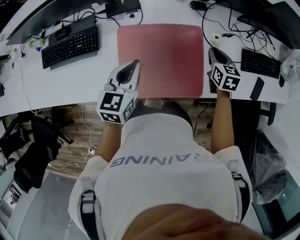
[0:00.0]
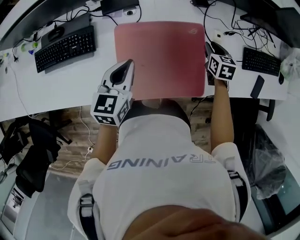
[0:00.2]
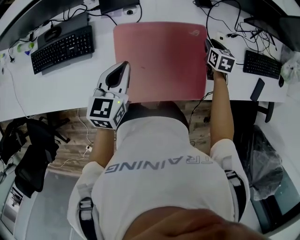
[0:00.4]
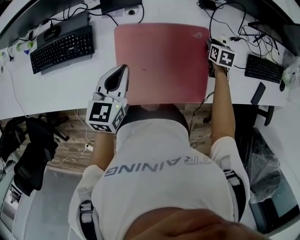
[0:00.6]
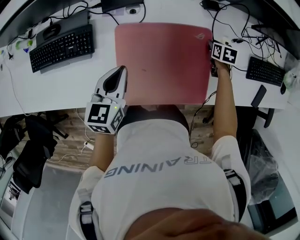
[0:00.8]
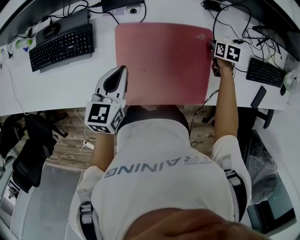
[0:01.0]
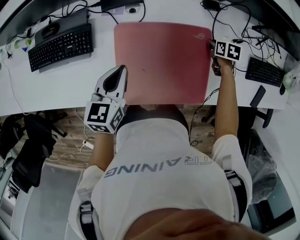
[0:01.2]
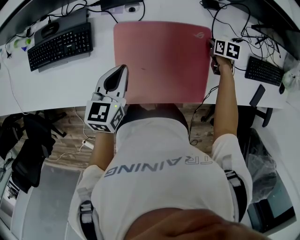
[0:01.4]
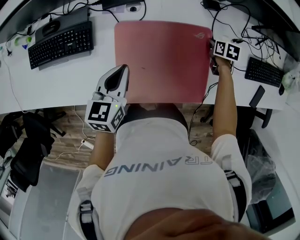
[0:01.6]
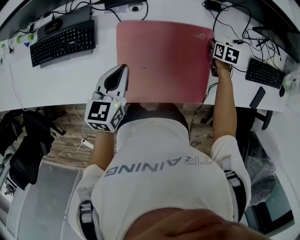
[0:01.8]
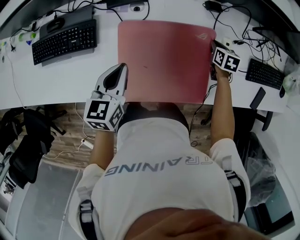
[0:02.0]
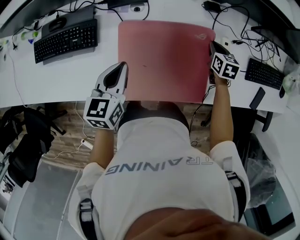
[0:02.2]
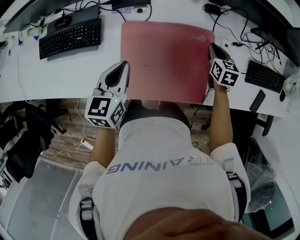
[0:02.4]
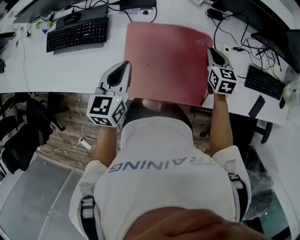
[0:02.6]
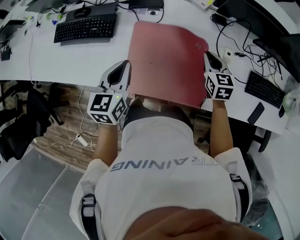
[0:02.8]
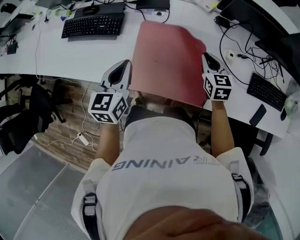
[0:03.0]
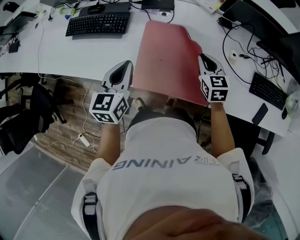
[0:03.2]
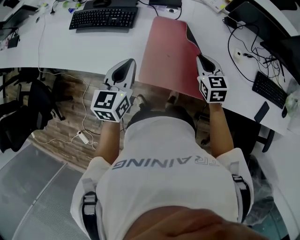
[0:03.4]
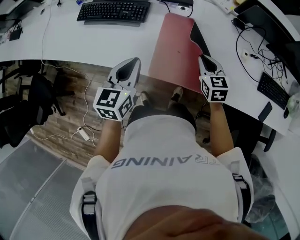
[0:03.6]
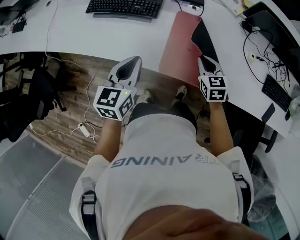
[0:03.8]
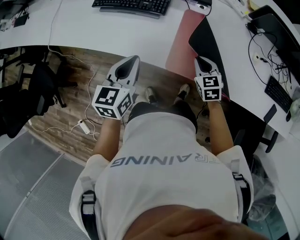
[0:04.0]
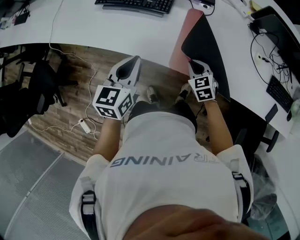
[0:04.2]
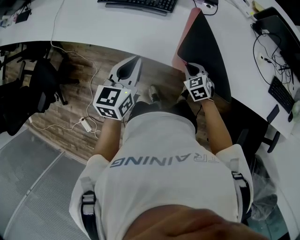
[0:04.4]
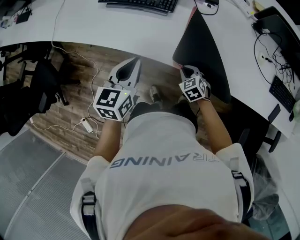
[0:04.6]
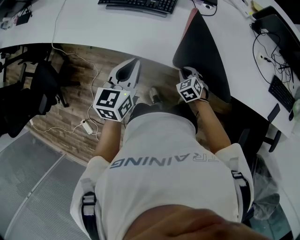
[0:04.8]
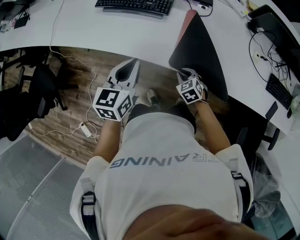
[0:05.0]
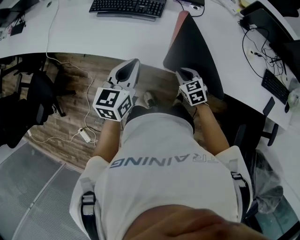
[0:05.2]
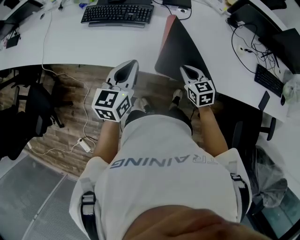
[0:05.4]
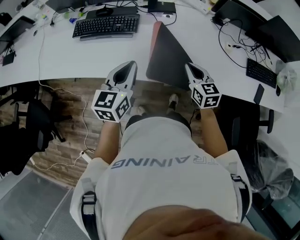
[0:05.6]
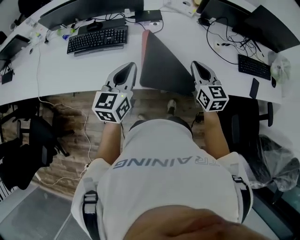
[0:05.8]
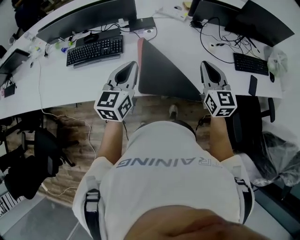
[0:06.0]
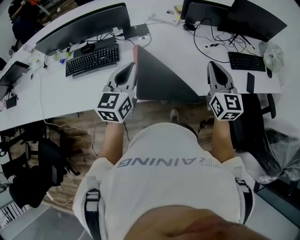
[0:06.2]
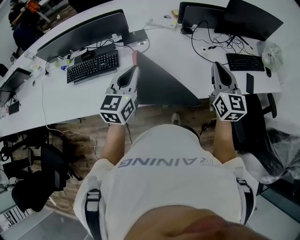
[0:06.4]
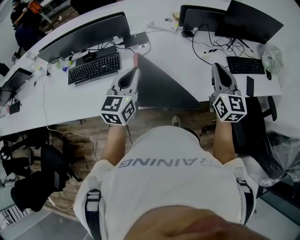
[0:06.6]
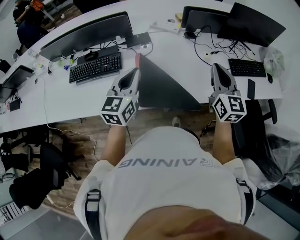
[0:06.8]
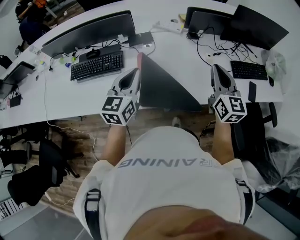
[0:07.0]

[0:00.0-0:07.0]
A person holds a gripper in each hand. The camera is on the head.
0:00.0 to 0:01.4: The right gripper goes about 20 cm downward and forward, and rotates about 30 degrees. Meanwhile the left gripper heads downward and to the left, covering roughly 10 cm.
0:01.4 to 0:02.8: The right gripper travels upward, to the left and backward by approximately 20 cm, and points its fingers approximately 30 degrees further upward. The left gripper heads upward and backward, covering approximately 10 cm.
0:02.8 to 0:04.2: Both grippers move to the left and backward, some 30 cm. The right gripper turns by some 30 degrees.
0:04.2 to 0:05.6: The left gripper heads to the right, covering some 5 cm. The right gripper shifts some 15 cm upward and to the right, and swivels about 30 degrees.
0:05.6 to 0:07.0: The right gripper travels upward and to the right by approximately 25 cm, and swivels approximately 30 degrees. Meanwhile the left gripper heads to the right, forward and upward, covering some 15 cm.

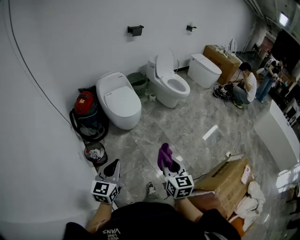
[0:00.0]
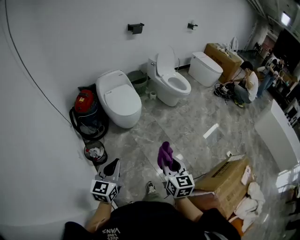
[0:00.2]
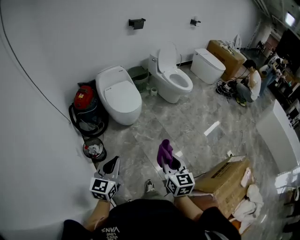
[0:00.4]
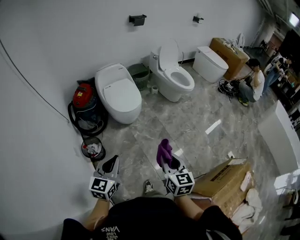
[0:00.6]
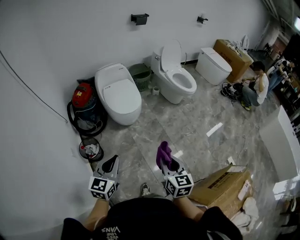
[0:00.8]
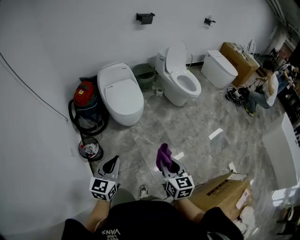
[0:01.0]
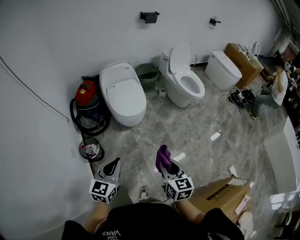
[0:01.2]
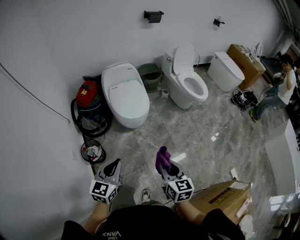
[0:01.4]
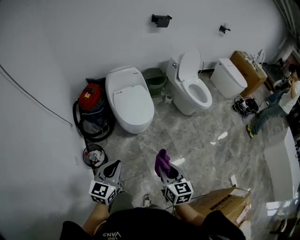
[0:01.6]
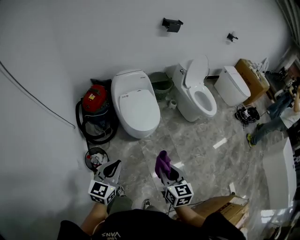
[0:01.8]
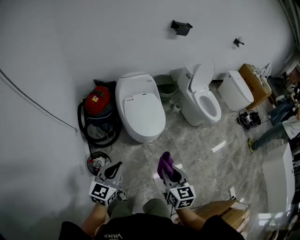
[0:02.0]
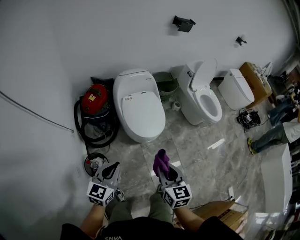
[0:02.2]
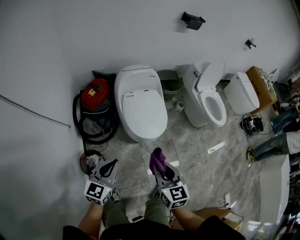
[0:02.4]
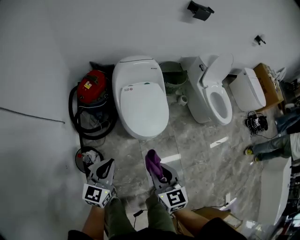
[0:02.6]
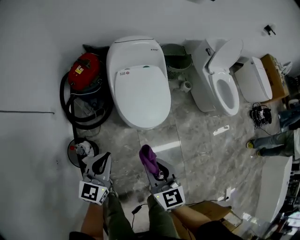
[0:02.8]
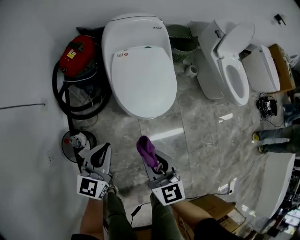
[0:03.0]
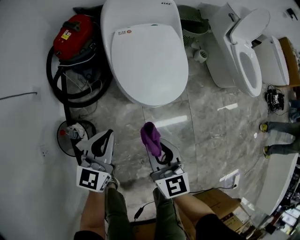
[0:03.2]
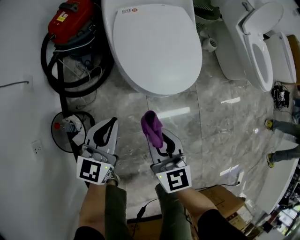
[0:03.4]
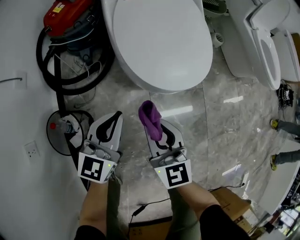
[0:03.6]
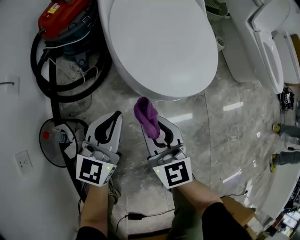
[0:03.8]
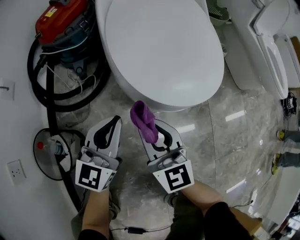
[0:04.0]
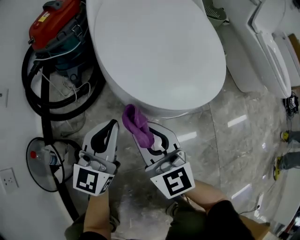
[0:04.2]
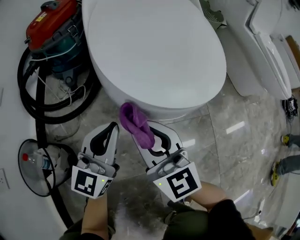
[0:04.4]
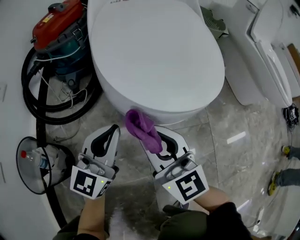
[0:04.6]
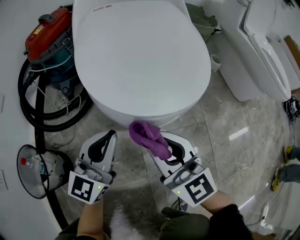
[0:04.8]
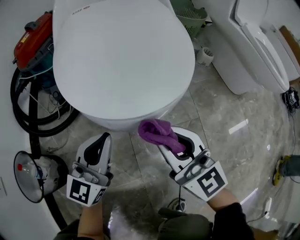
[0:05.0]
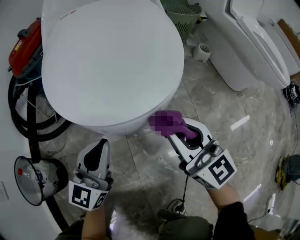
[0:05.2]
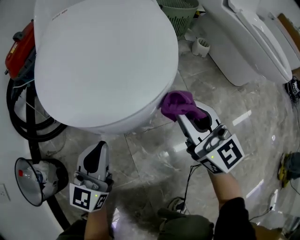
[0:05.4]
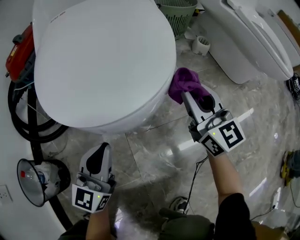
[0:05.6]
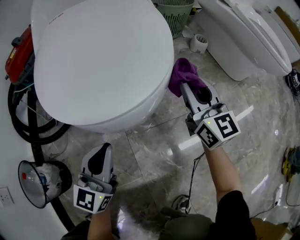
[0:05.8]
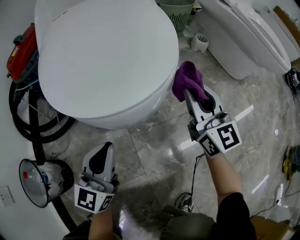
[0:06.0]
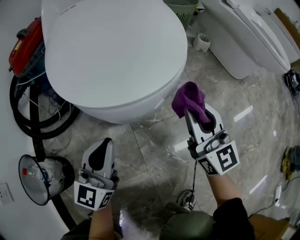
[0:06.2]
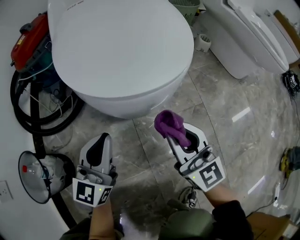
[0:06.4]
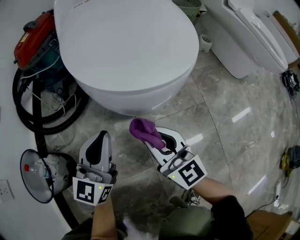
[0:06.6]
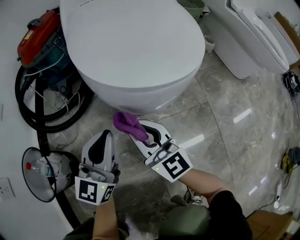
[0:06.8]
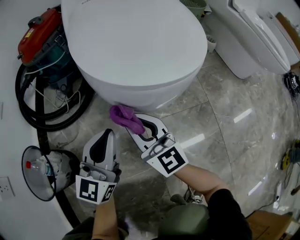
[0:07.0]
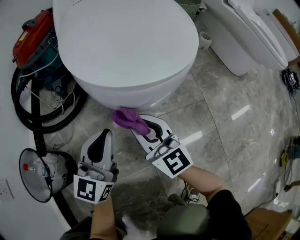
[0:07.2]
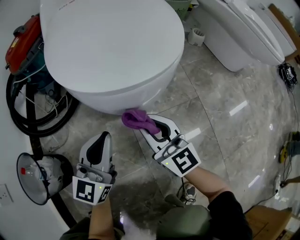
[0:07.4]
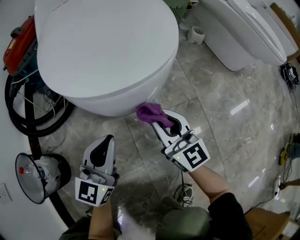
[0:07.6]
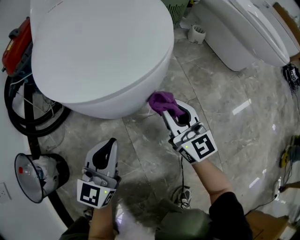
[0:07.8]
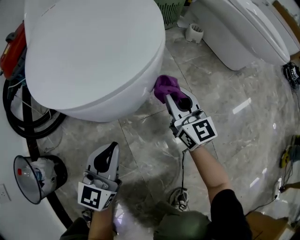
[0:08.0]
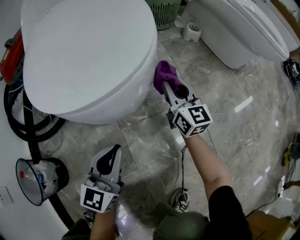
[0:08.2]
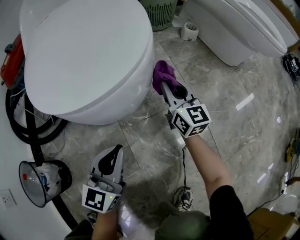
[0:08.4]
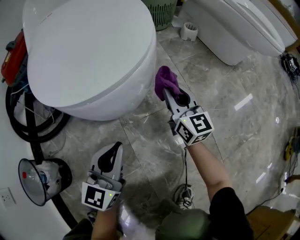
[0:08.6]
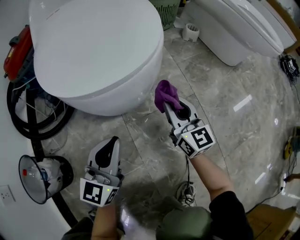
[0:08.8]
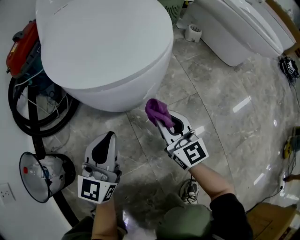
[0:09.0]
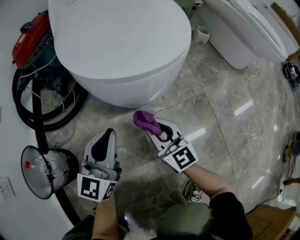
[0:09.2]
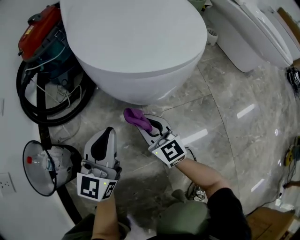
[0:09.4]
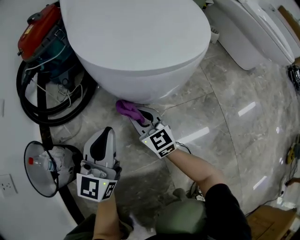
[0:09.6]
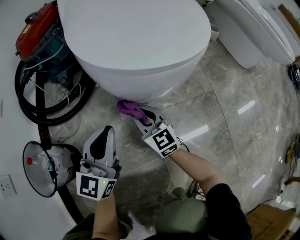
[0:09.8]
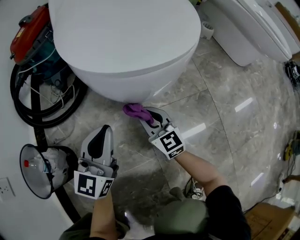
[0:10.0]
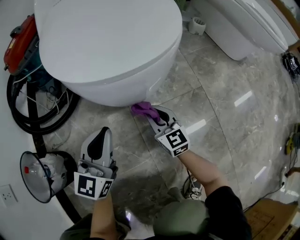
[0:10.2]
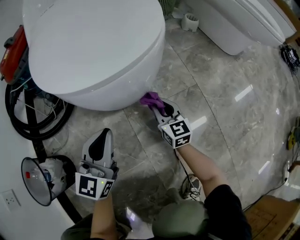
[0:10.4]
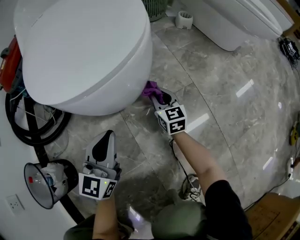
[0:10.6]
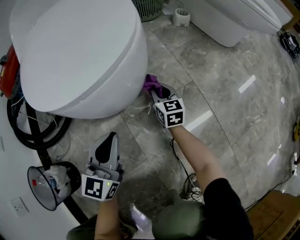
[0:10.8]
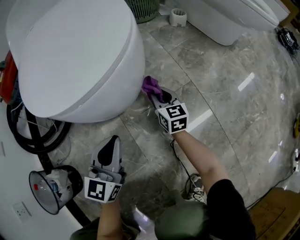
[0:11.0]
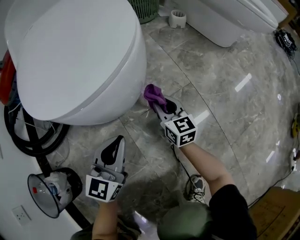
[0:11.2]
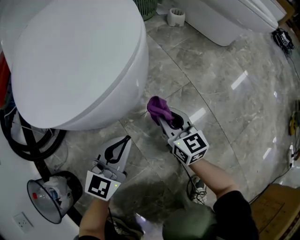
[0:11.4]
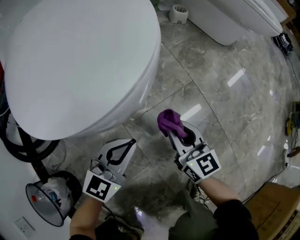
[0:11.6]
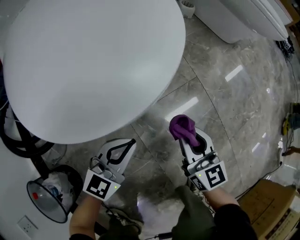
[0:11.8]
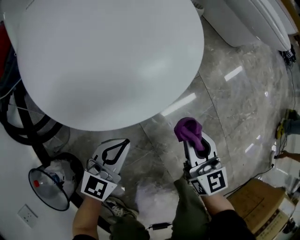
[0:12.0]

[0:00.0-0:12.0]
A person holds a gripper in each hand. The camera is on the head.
0:00.0 to 0:01.6: Both grippers move forward, approximately 25 cm.
0:01.6 to 0:03.0: Both grippers move forward and downward, approximately 35 cm. The right gripper rotates roughly 20 degrees.
0:03.0 to 0:04.4: The two grippers go approximately 35 cm downward. The right gripper rotates approximately 20 degrees.
0:04.4 to 0:06.0: The left gripper is displaced to the right by roughly 10 cm, while the right gripper is displaced to the right by roughly 25 cm, and rotates some 20 degrees.
0:06.0 to 0:07.6: The left gripper goes to the left and returns, about 10 cm each way; the right gripper travels to the left, backward and downward by some 15 cm.
0:07.6 to 0:09.0: The right gripper reaches about 15 cm forward, then returns.
0:09.0 to 0:10.4: The right gripper is displaced downward and forward by some 15 cm, and travels to the left and back again, about 20 cm each way, while the left gripper moves some 10 cm to the left and comes back.
0:10.4 to 0:12.0: The right gripper heads upward and backward, covering some 20 cm; the left gripper turns by some 30 degrees.

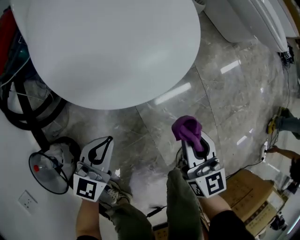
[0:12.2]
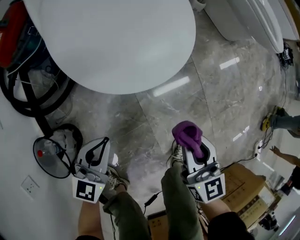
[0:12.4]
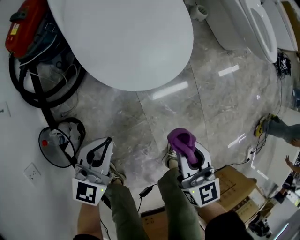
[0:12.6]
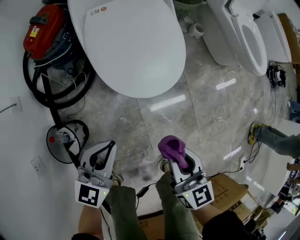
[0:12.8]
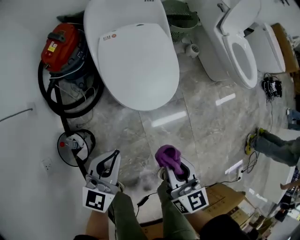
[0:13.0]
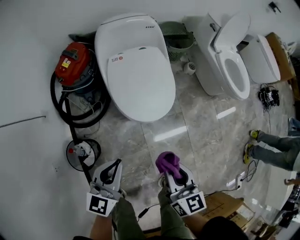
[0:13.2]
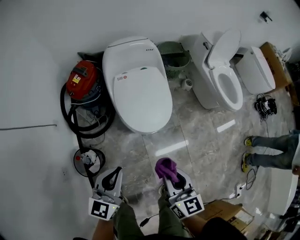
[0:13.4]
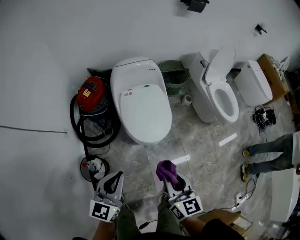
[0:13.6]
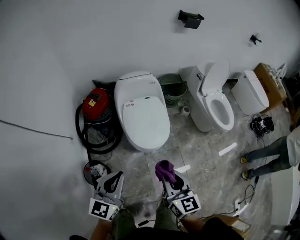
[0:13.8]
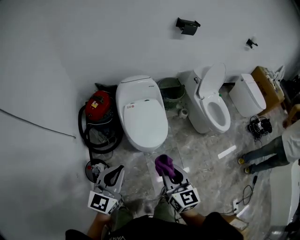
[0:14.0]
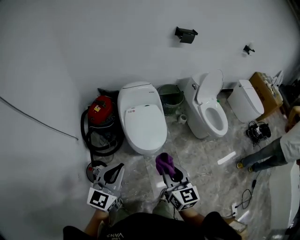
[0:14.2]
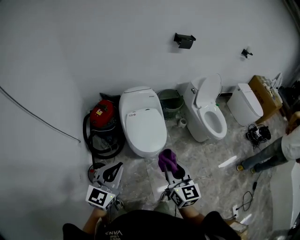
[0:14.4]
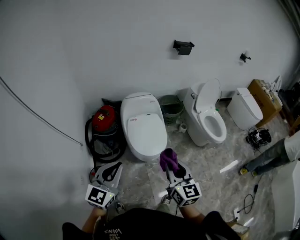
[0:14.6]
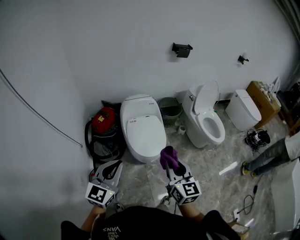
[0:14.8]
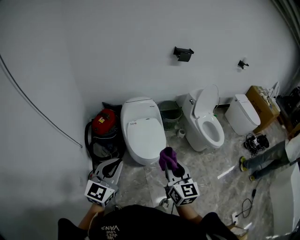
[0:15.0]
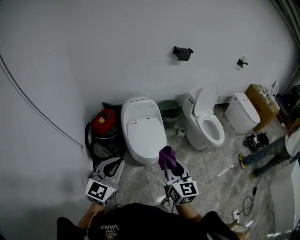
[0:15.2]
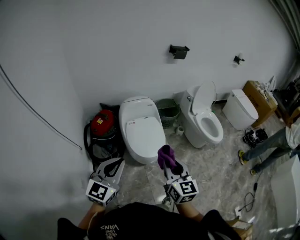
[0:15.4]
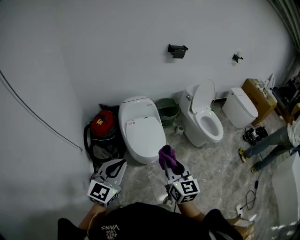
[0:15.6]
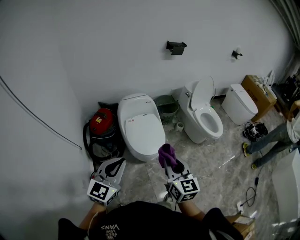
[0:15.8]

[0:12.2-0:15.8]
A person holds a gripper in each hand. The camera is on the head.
0:12.2 to 0:14.0: Both grippers move upward, roughly 60 cm. The left gripper rotates roughly 20 degrees.
0:14.0 to 0:15.8: The two grippers go about 10 cm upward.

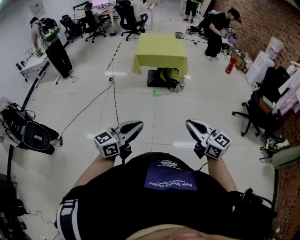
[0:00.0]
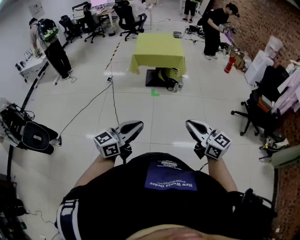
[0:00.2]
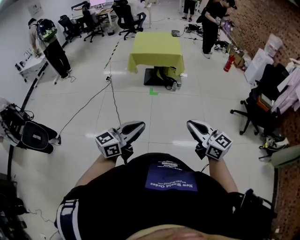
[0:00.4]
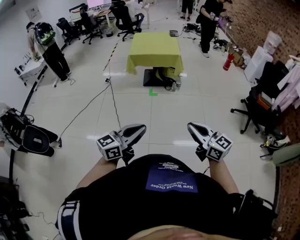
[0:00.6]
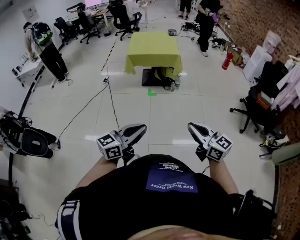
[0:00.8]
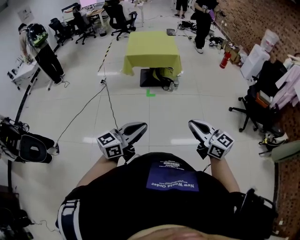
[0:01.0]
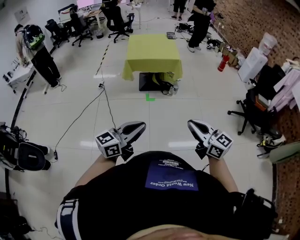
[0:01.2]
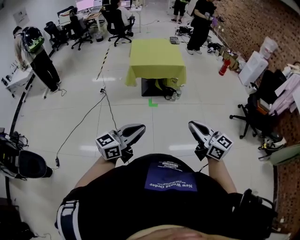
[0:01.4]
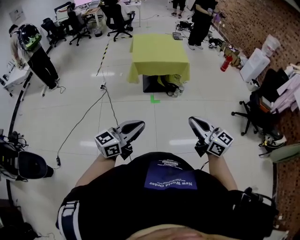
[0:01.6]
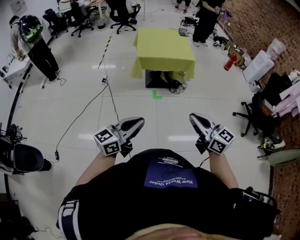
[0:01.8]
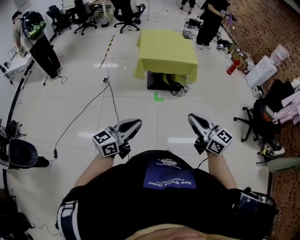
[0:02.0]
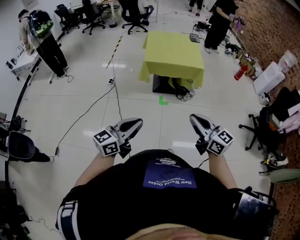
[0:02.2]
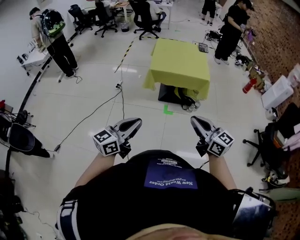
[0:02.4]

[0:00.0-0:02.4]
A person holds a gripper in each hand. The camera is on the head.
0:00.0 to 0:01.2: Both grippers travel together forward, approximately 10 cm.
0:01.2 to 0:02.4: The left gripper goes some 30 cm forward and to the left, while the right gripper heads forward, covering roughly 30 cm.
